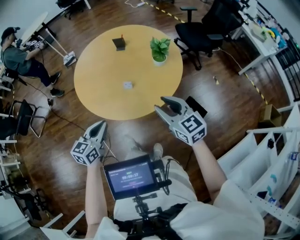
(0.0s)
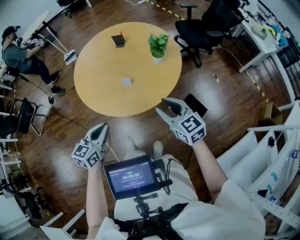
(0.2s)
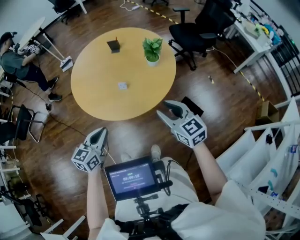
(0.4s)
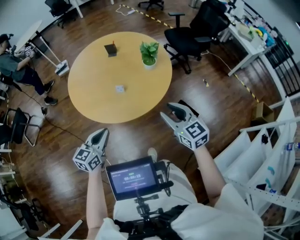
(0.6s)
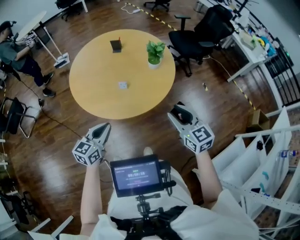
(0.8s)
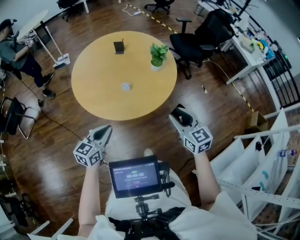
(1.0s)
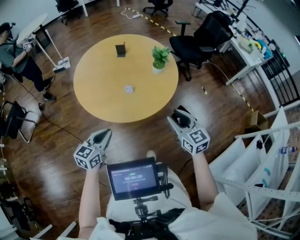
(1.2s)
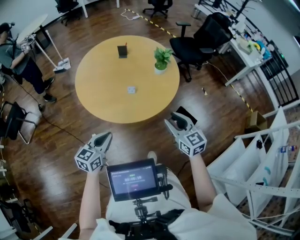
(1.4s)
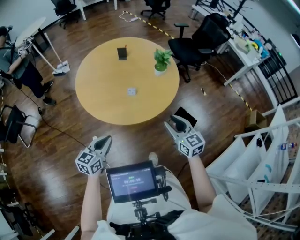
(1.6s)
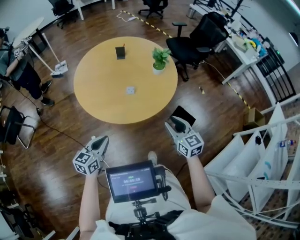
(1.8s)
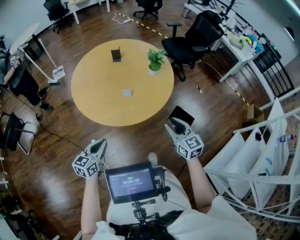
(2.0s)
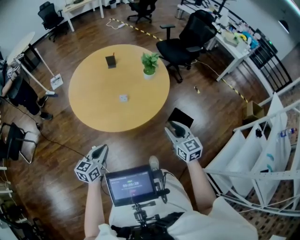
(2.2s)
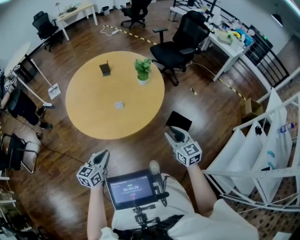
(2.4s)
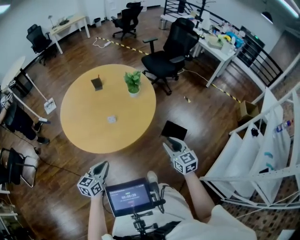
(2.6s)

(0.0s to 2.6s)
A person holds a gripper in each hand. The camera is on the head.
0.0s - 1.2s: The grippers both shift backward by approximately 5 cm.
1.2s - 2.6s: The right gripper heads to the right and downward, covering about 10 cm; the left gripper moves approximately 5 cm to the left and comes back.

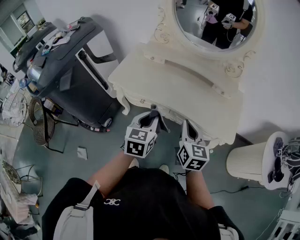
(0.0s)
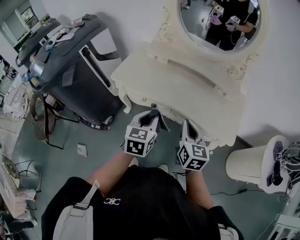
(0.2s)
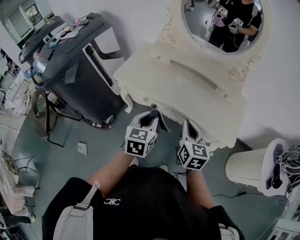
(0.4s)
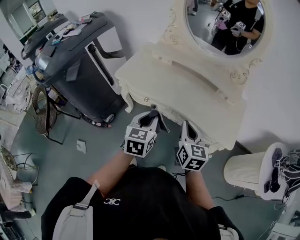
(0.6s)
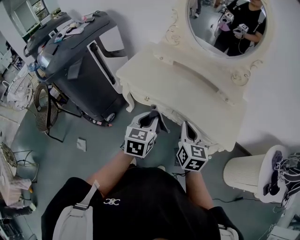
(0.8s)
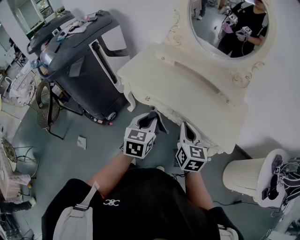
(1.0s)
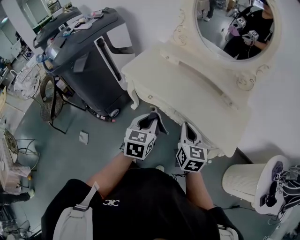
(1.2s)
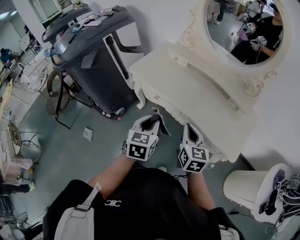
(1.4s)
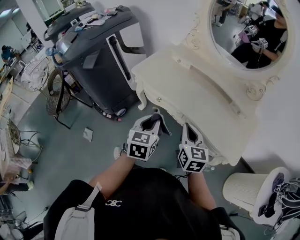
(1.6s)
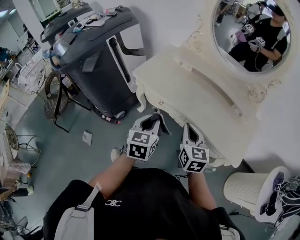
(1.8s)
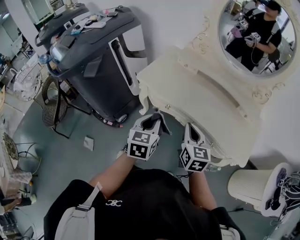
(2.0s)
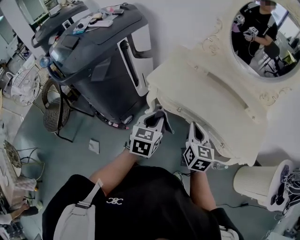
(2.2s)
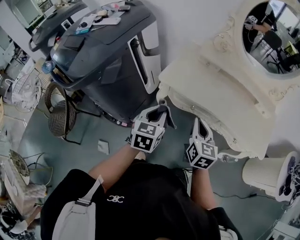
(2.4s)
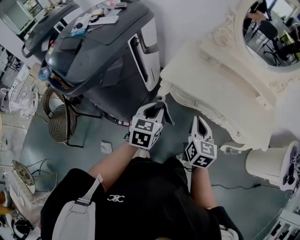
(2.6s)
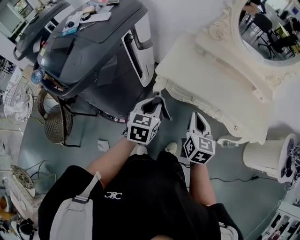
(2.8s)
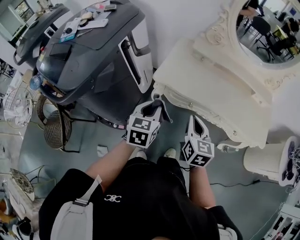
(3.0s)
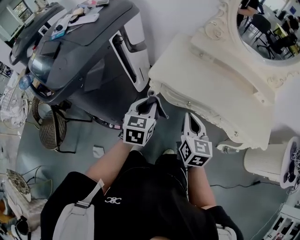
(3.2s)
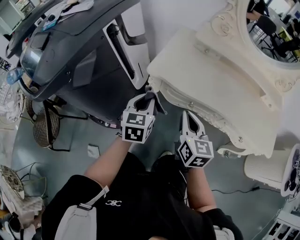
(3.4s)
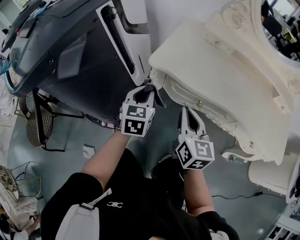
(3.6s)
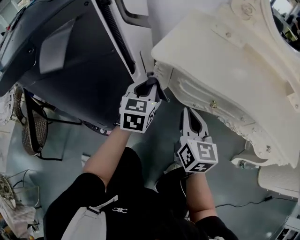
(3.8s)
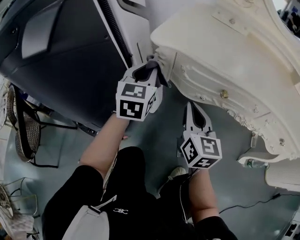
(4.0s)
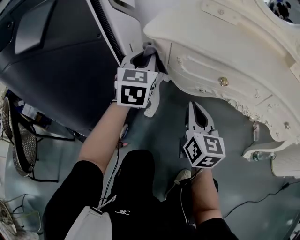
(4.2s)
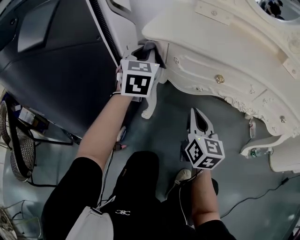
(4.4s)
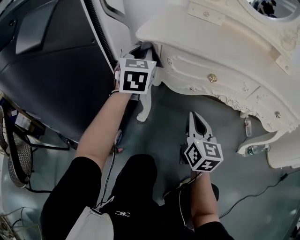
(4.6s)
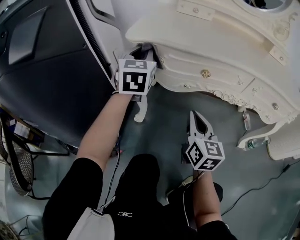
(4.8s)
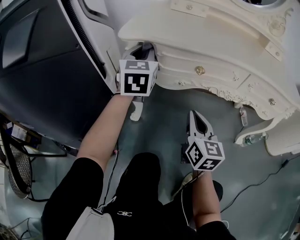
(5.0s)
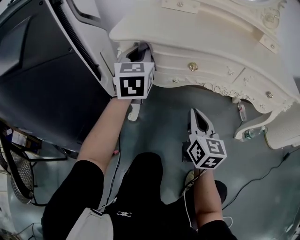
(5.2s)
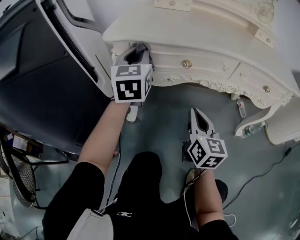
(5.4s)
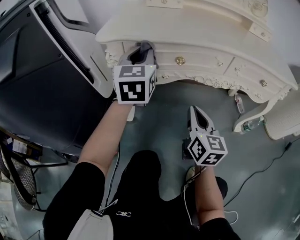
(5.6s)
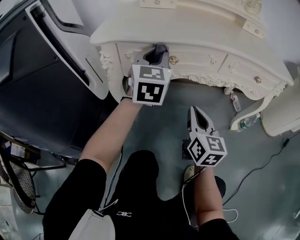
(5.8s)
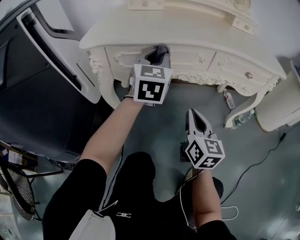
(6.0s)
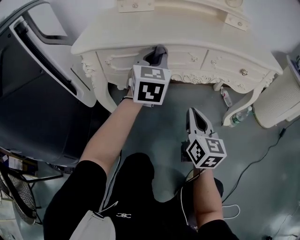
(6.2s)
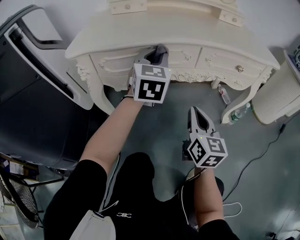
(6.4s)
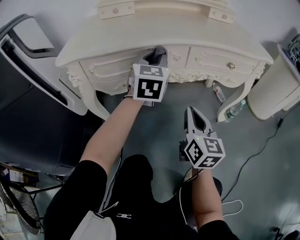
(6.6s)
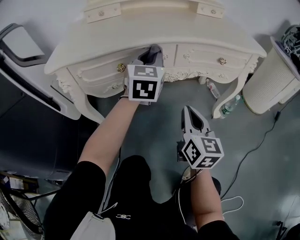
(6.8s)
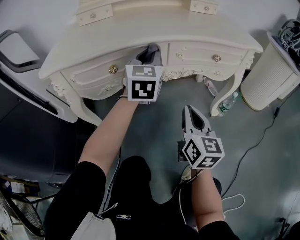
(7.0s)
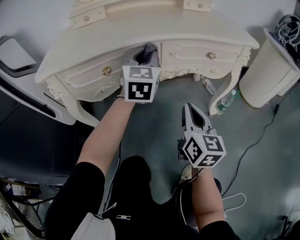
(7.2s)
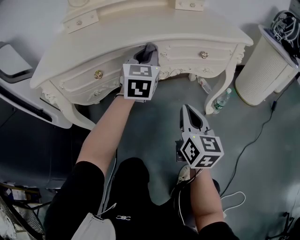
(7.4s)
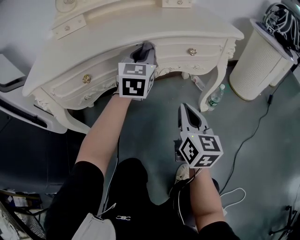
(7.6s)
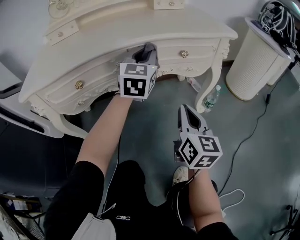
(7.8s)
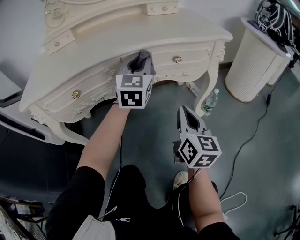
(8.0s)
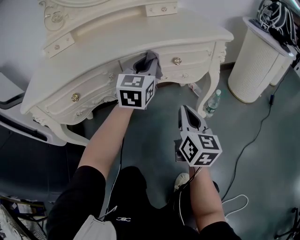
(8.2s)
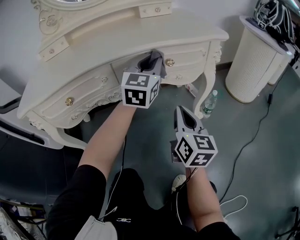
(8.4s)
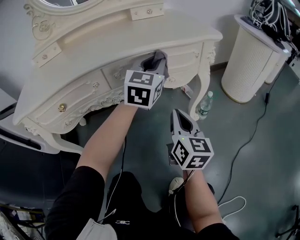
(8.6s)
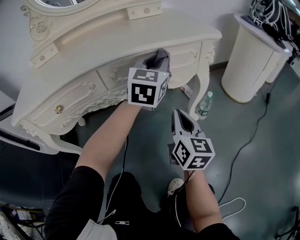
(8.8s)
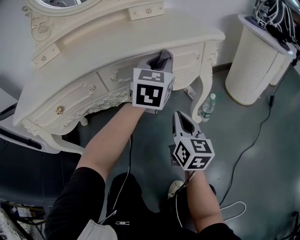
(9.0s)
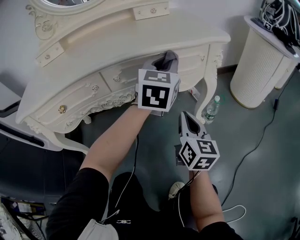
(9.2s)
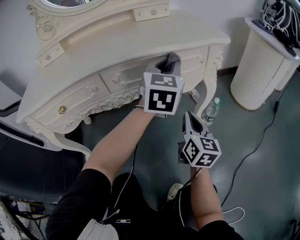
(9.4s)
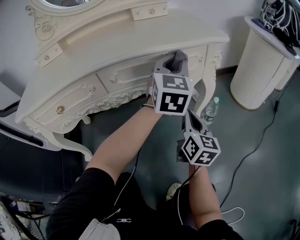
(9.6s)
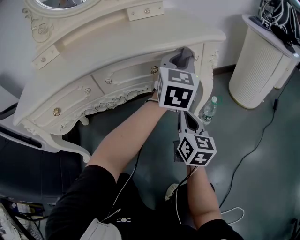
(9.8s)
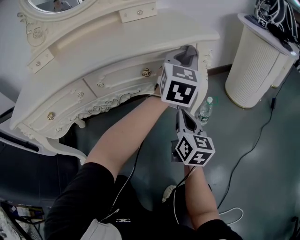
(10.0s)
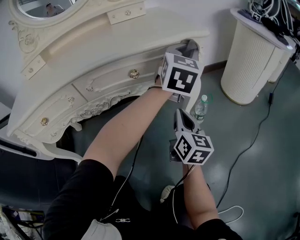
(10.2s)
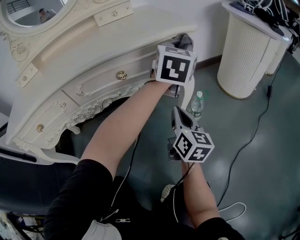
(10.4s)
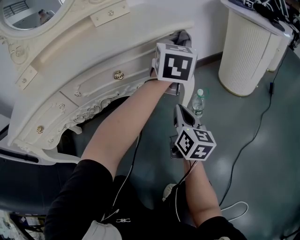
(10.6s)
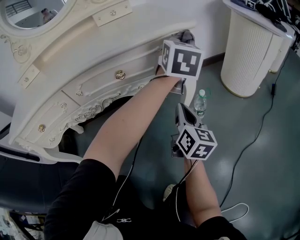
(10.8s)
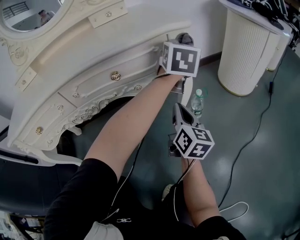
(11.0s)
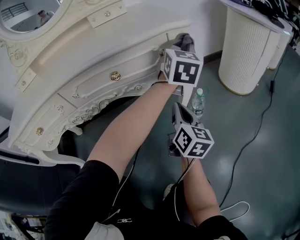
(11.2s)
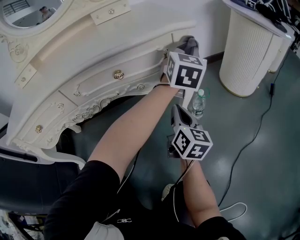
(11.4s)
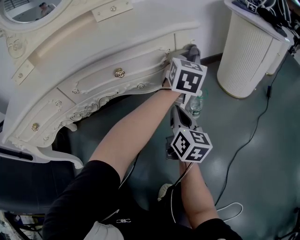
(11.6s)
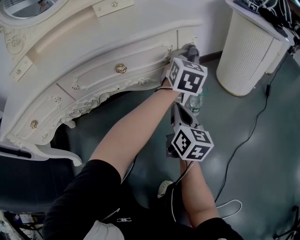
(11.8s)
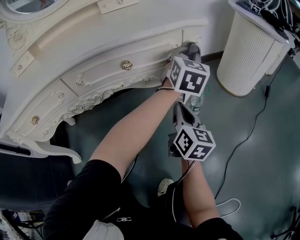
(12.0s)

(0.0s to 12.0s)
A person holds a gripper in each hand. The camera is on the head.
0.0s - 1.6s: There are only small adjustments of the grippers.
1.6s - 3.0s: The left gripper is displaced to the left and forward by some 30 cm. The right gripper is displaced to the left by roughly 25 cm, and rotates approximately 20 degrees.
3.0s - 4.4s: The left gripper travels downward and forward by about 30 cm, and rotates roughly 30 degrees; the right gripper goes approximately 35 cm downward.
4.4s - 6.0s: The right gripper travels to the right and backward by about 15 cm. Meanwhile the left gripper heads to the right, covering roughly 25 cm, and rotates about 20 degrees.
6.0s - 7.6s: The grippers both shift to the right by some 20 cm.
7.6s - 9.0s: The left gripper goes roughly 20 cm to the right; the right gripper is displaced to the right and forward by roughly 10 cm.
9.0s - 10.4s: The right gripper goes about 10 cm to the right and forward. The left gripper goes some 20 cm to the right and forward.
10.4s - 12.0s: The left gripper travels downward by some 5 cm.

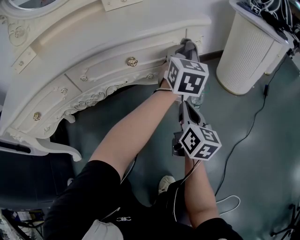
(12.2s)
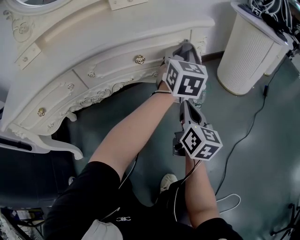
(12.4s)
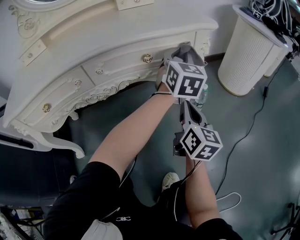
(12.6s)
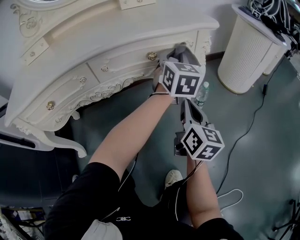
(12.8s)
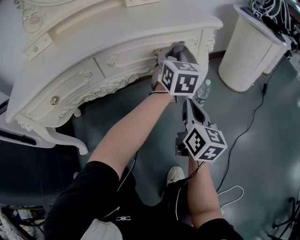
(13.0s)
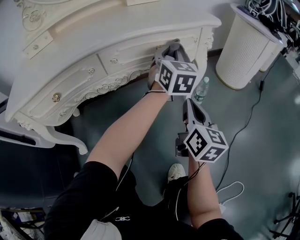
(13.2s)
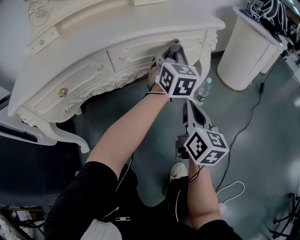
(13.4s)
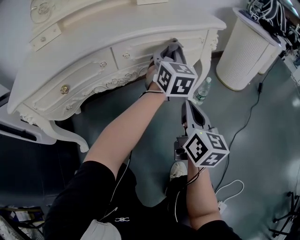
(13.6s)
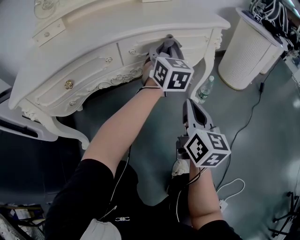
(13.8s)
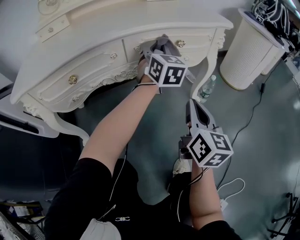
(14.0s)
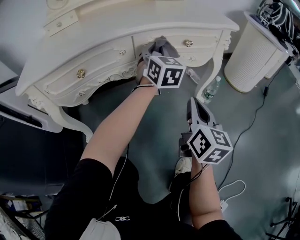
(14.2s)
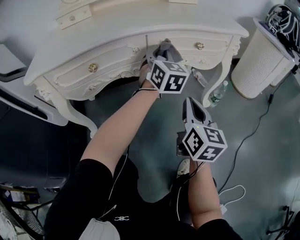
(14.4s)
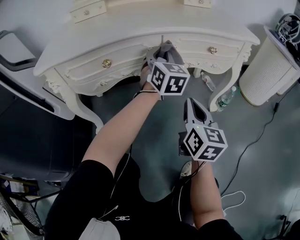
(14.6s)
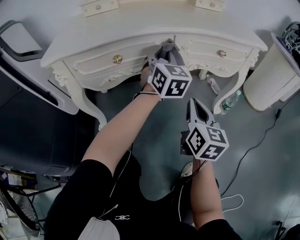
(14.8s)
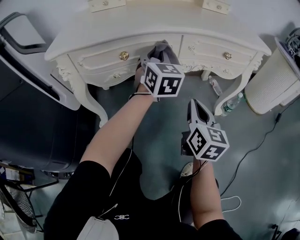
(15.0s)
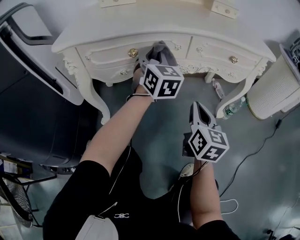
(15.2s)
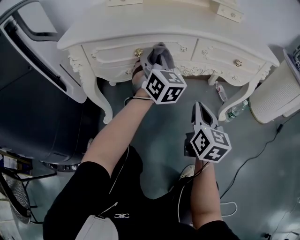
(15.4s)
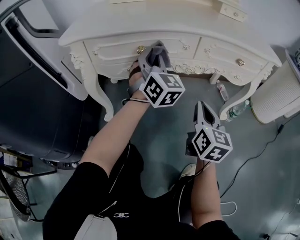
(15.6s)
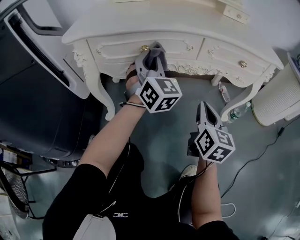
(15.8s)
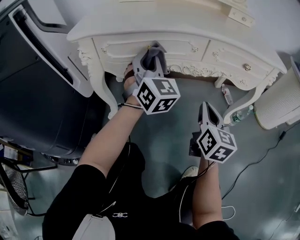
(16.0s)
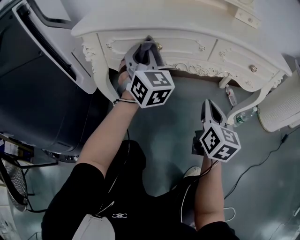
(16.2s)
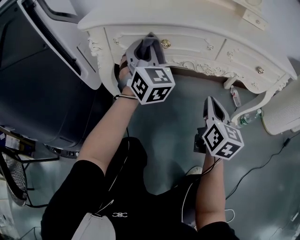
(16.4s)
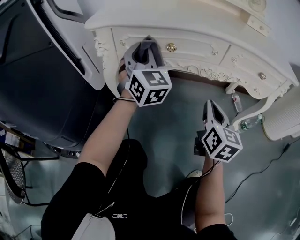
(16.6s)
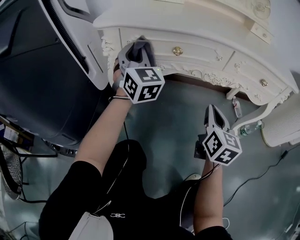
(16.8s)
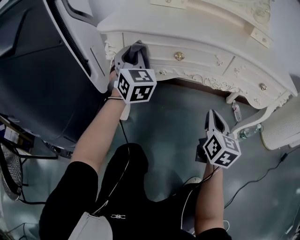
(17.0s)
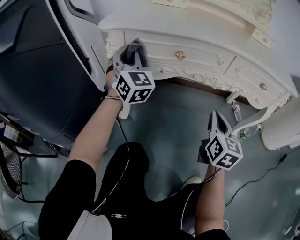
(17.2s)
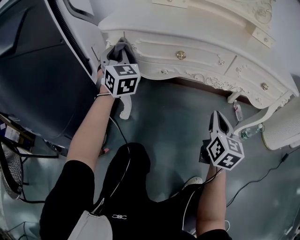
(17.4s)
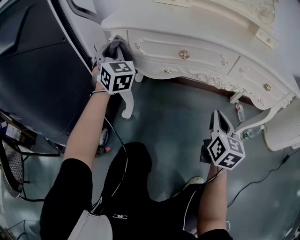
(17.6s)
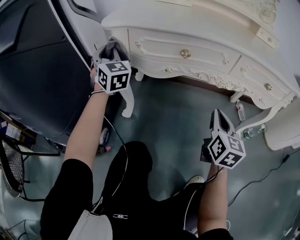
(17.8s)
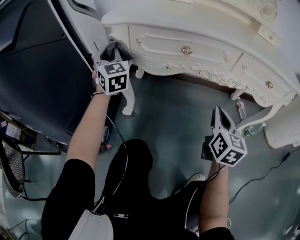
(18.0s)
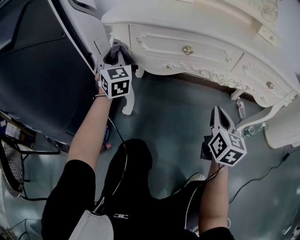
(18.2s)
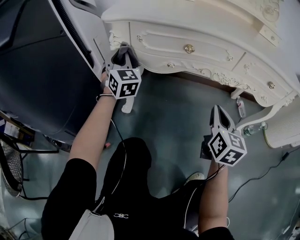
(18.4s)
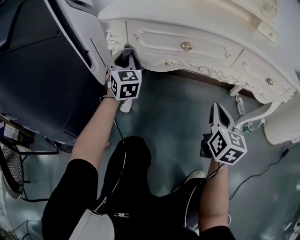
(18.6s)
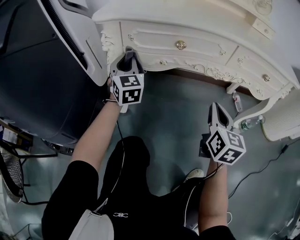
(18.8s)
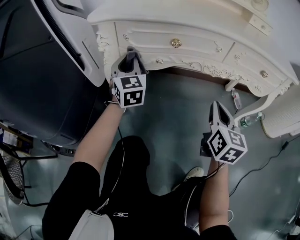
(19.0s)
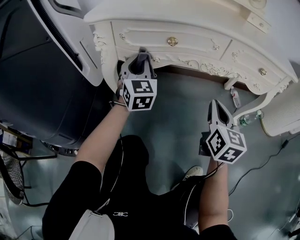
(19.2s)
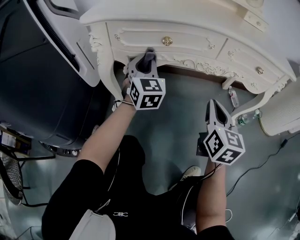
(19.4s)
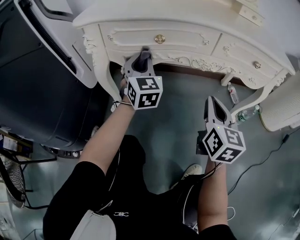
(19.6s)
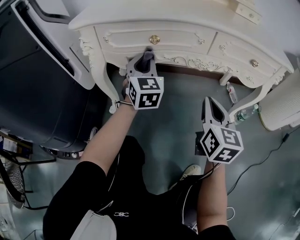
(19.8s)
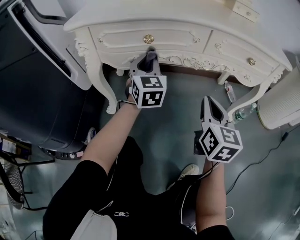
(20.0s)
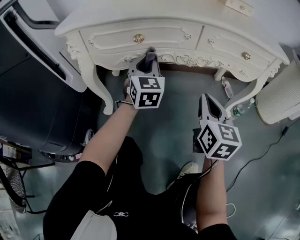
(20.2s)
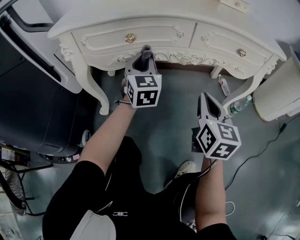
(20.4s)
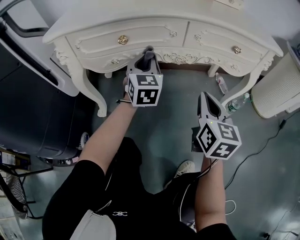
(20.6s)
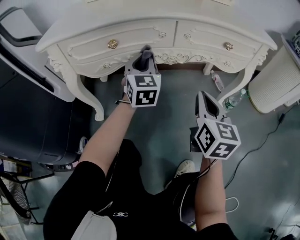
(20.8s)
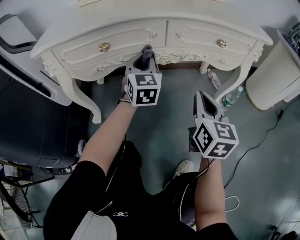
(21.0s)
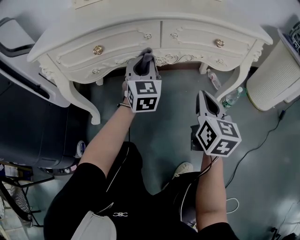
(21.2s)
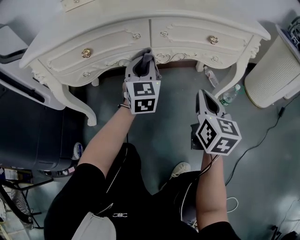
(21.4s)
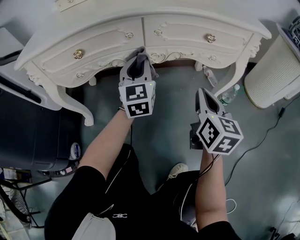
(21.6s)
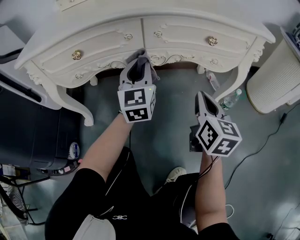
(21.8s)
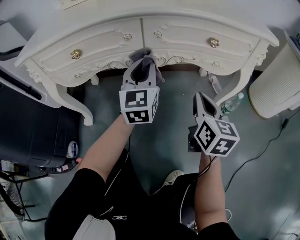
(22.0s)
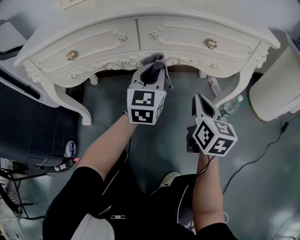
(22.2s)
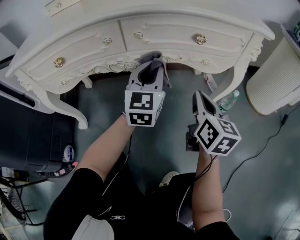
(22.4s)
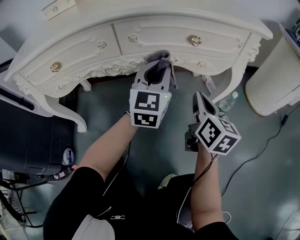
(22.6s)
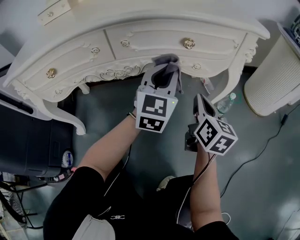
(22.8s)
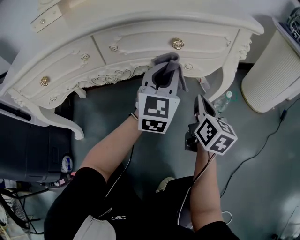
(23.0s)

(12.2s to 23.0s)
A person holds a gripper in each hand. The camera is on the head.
12.2s - 13.8s: The right gripper moves backward, to the left and upward, about 20 cm, while the left gripper heads to the left, covering roughly 20 cm.
13.8s - 15.2s: The left gripper moves to the left, some 30 cm, and turns by about 20 degrees. Meanwhile the right gripper travels to the left by some 15 cm.
15.2s - 16.8s: The right gripper travels to the left by roughly 5 cm. The left gripper heads to the left, covering some 20 cm, and turns by roughly 20 degrees.
16.8s - 18.4s: The left gripper moves to the left and downward, roughly 10 cm.
18.4s - 20.0s: The left gripper heads to the right, covering roughly 25 cm, and turns by some 20 degrees. Meanwhile the right gripper goes approximately 5 cm to the right.
20.0s - 21.4s: The two grippers go approximately 15 cm to the right.
21.4s - 23.0s: The left gripper heads to the right, covering some 20 cm. Meanwhile the right gripper heads to the right, forward and downward, covering roughly 15 cm.
